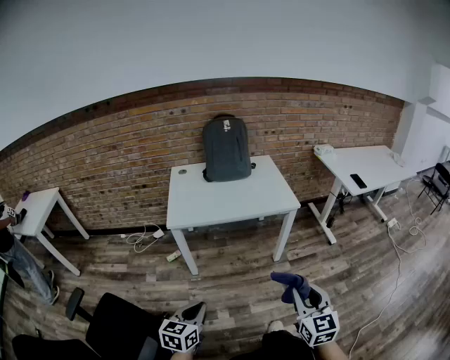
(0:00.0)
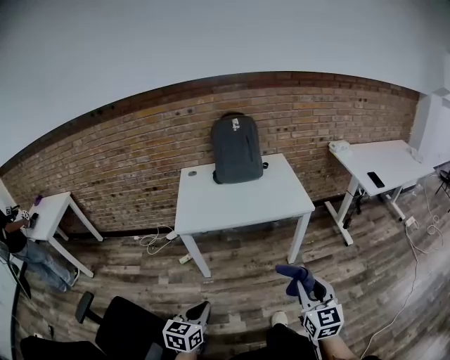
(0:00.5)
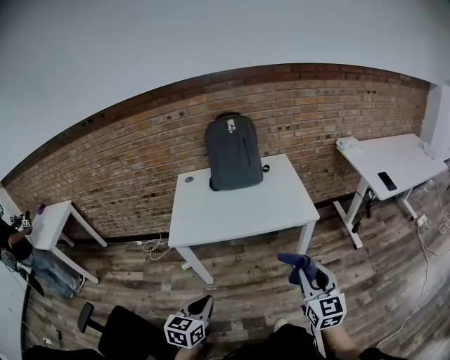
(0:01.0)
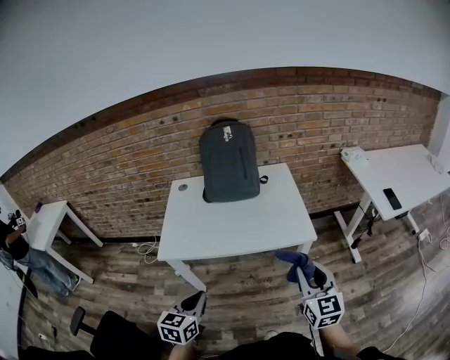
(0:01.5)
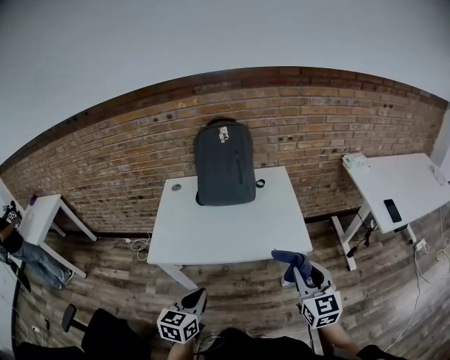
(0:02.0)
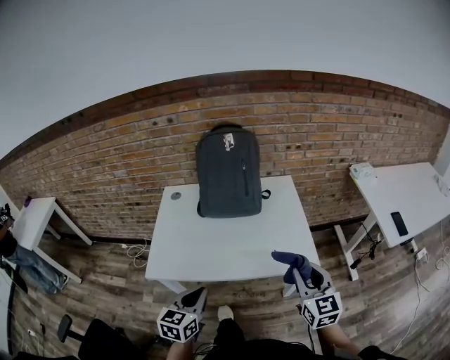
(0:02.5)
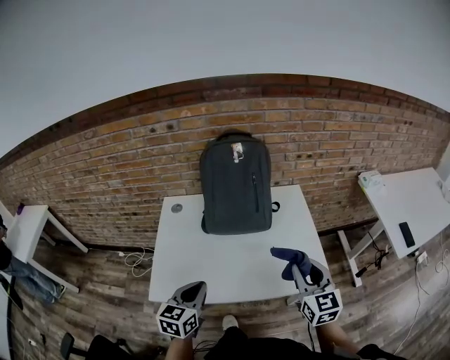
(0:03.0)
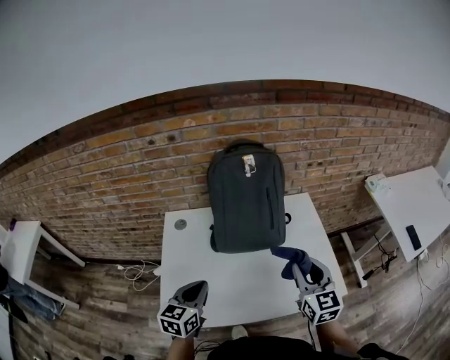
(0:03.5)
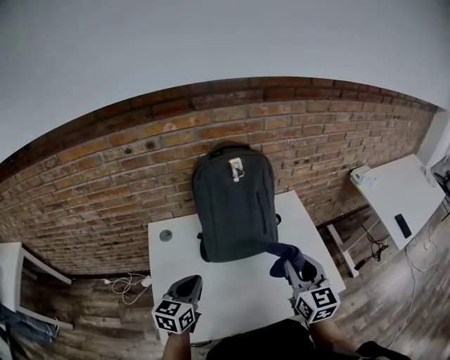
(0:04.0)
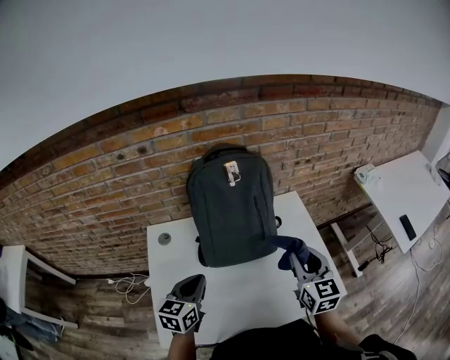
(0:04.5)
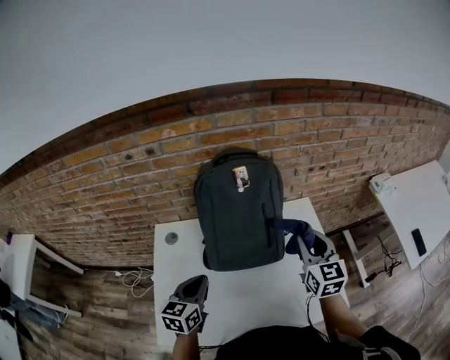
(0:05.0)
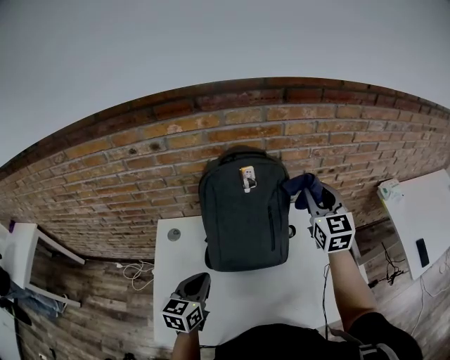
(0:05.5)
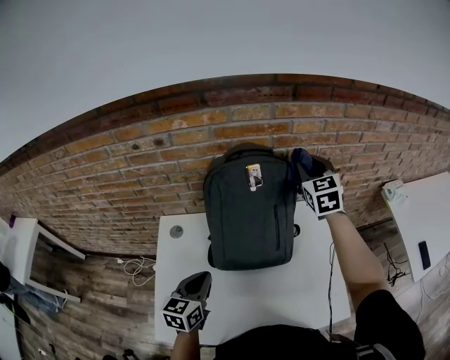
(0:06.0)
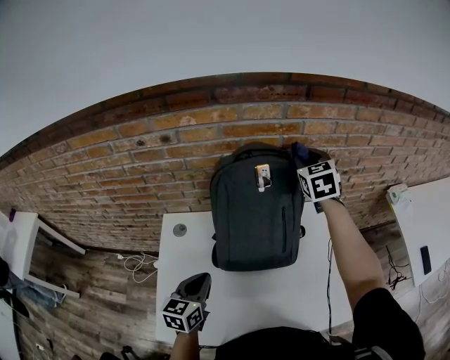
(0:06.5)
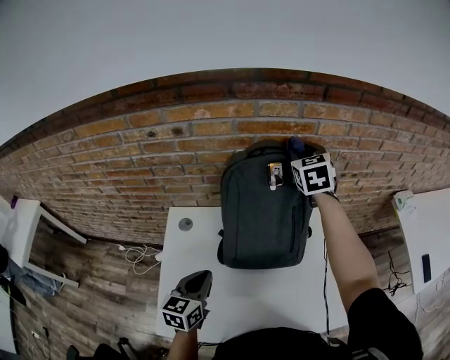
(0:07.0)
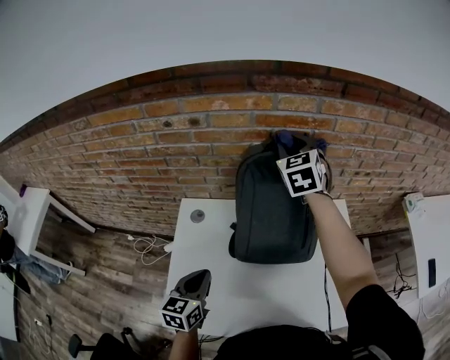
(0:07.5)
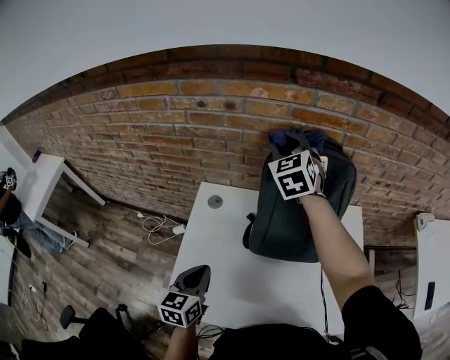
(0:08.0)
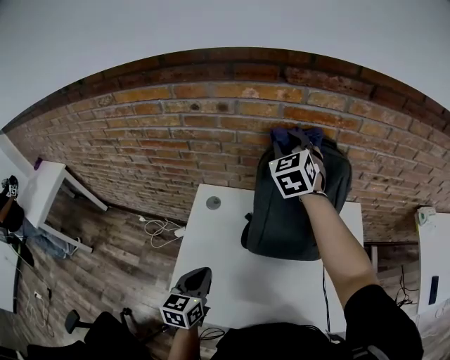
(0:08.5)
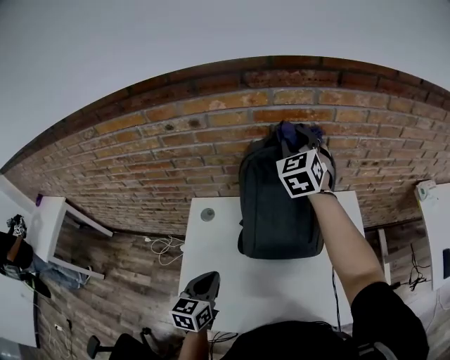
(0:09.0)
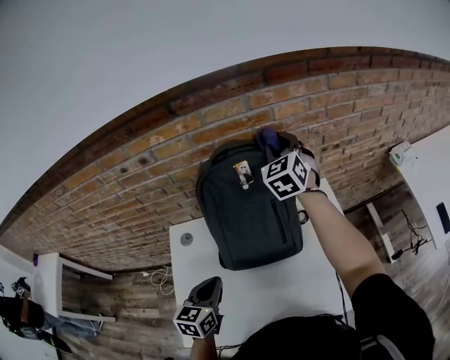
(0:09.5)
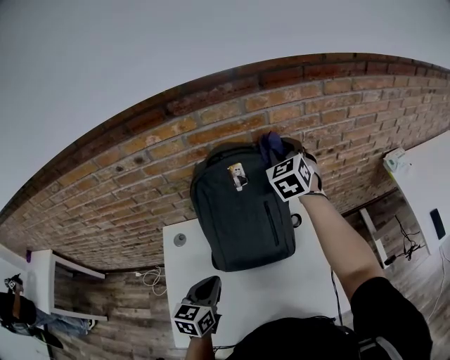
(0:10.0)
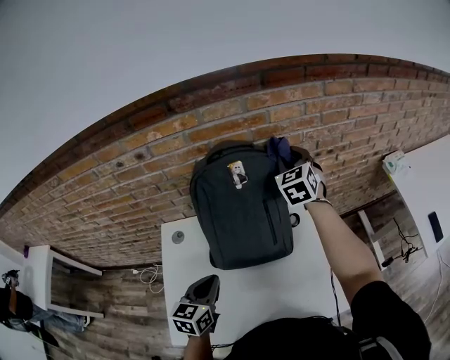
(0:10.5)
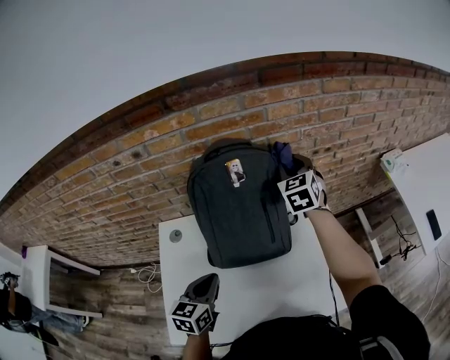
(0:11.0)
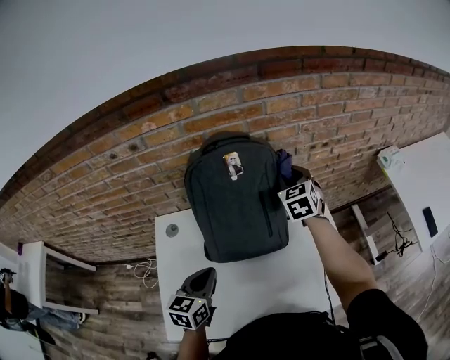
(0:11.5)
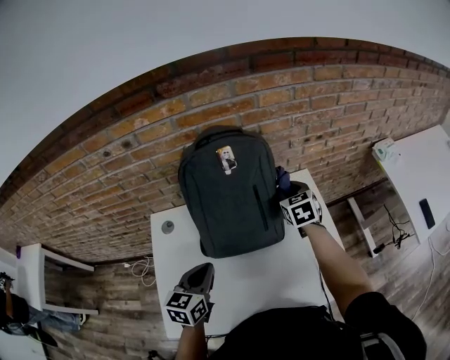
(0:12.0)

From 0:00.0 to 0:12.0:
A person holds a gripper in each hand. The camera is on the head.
From 0:00.0 to 0:02.0: Both grippers move forward, roughly 35 cm.
From 0:02.0 to 0:04.0: The two grippers go about 35 cm forward and to the left.
From 0:04.0 to 0:06.0: The left gripper travels forward by about 5 cm; the right gripper goes some 35 cm forward, and changes its angle by approximately 20 degrees.
From 0:06.0 to 0:08.0: The right gripper is displaced to the left by some 30 cm; the left gripper travels to the left and backward by approximately 10 cm.
From 0:08.0 to 0:10.0: The left gripper is displaced to the right and forward by some 15 cm; the right gripper shifts about 25 cm to the right, and turns by approximately 20 degrees.
From 0:10.0 to 0:12.0: The right gripper travels downward and backward by some 20 cm, and turns by approximately 20 degrees.

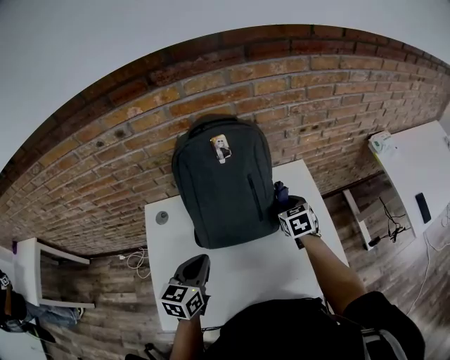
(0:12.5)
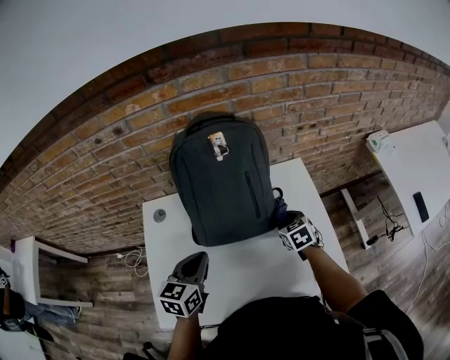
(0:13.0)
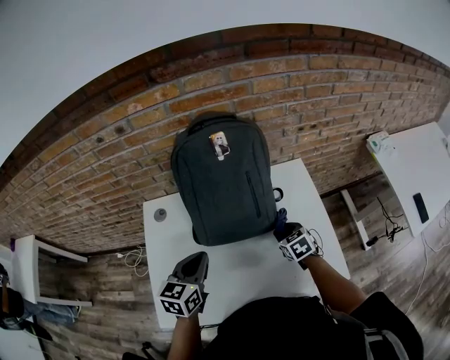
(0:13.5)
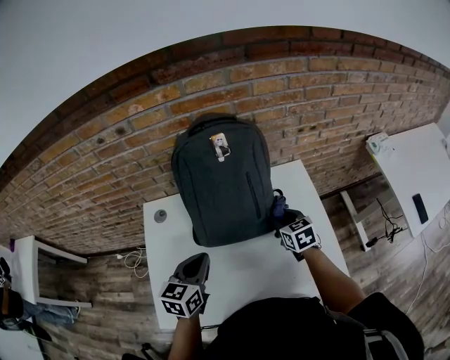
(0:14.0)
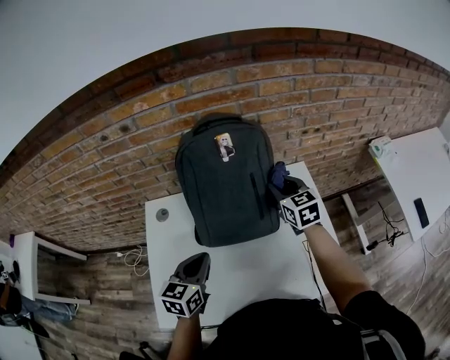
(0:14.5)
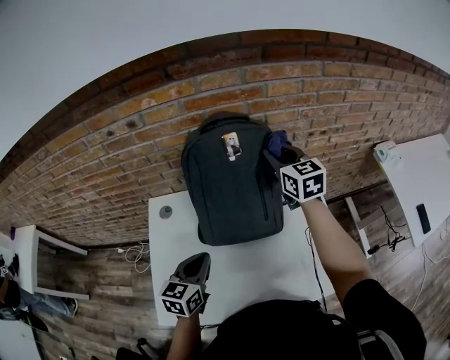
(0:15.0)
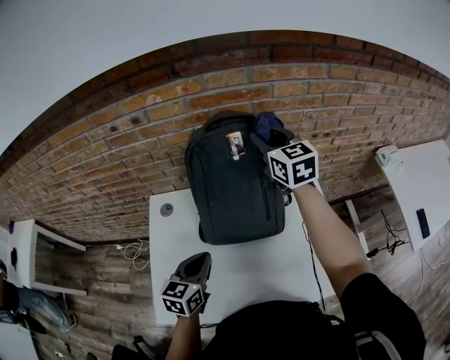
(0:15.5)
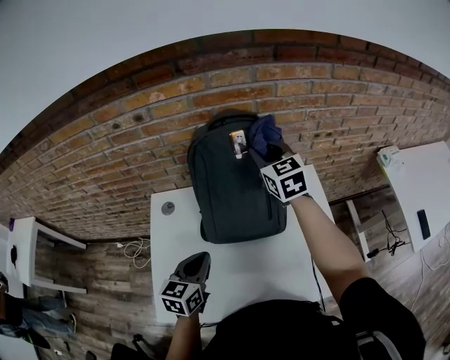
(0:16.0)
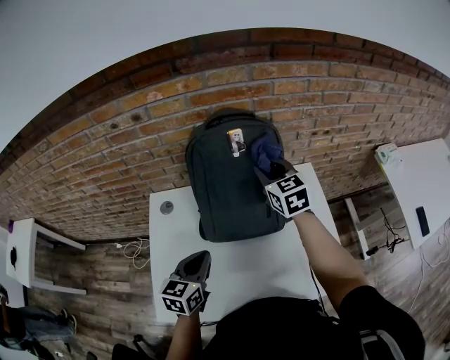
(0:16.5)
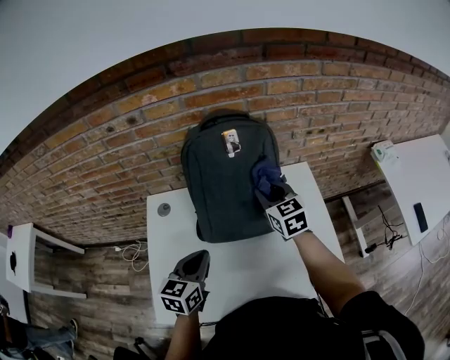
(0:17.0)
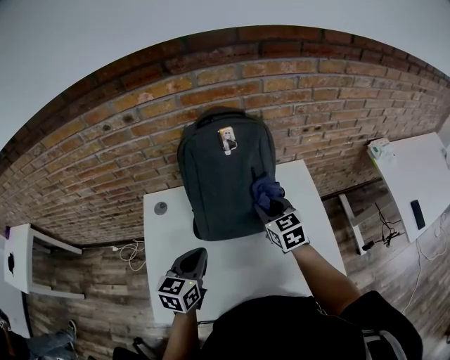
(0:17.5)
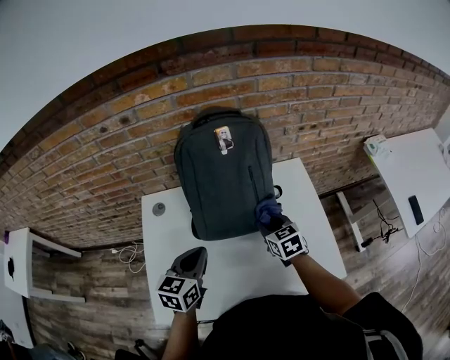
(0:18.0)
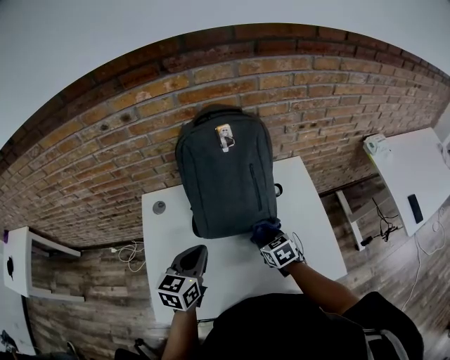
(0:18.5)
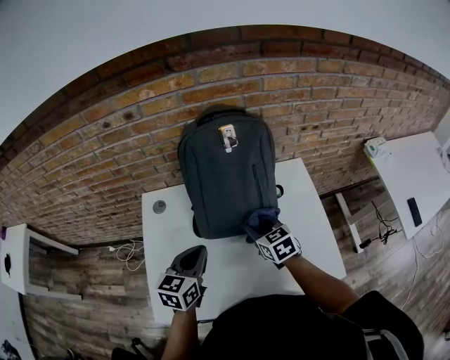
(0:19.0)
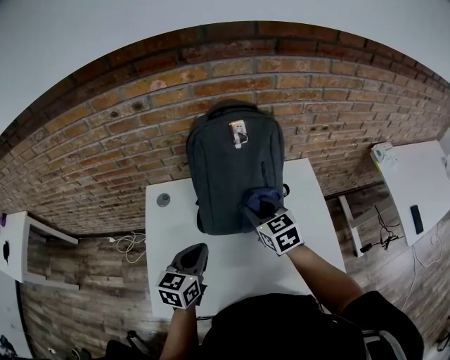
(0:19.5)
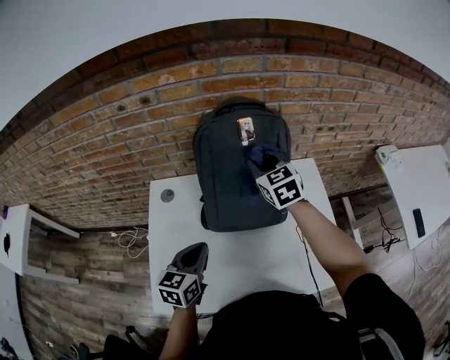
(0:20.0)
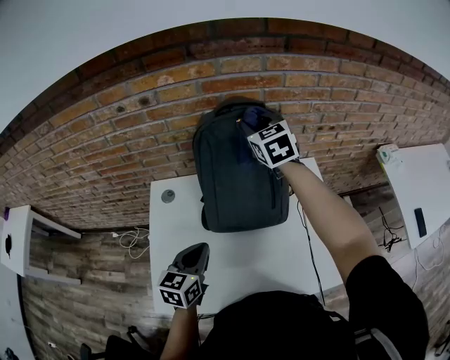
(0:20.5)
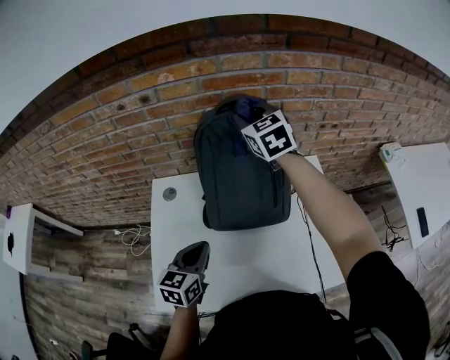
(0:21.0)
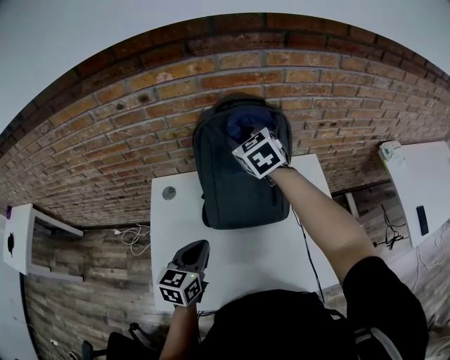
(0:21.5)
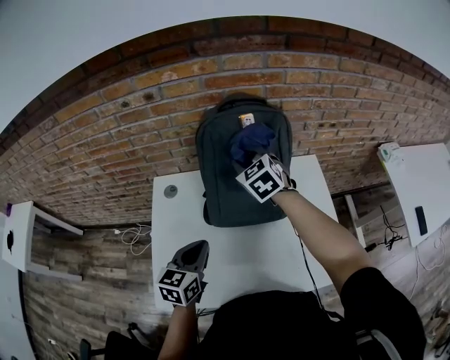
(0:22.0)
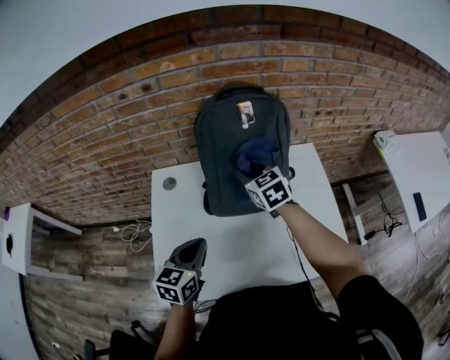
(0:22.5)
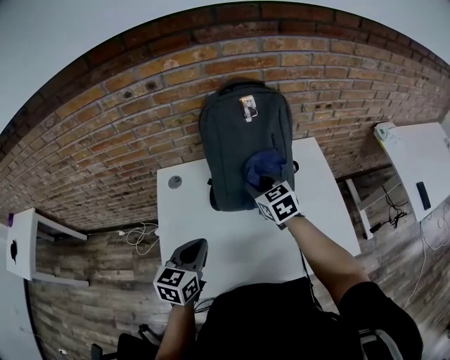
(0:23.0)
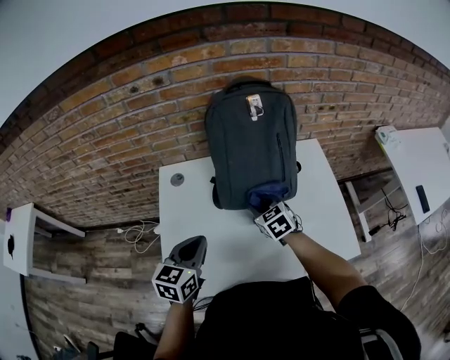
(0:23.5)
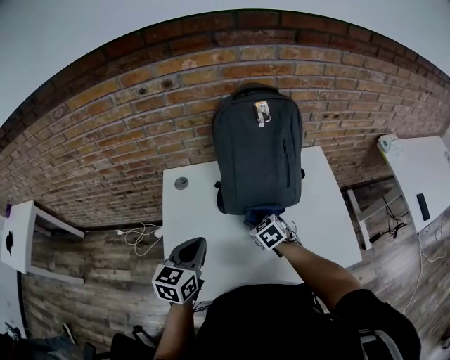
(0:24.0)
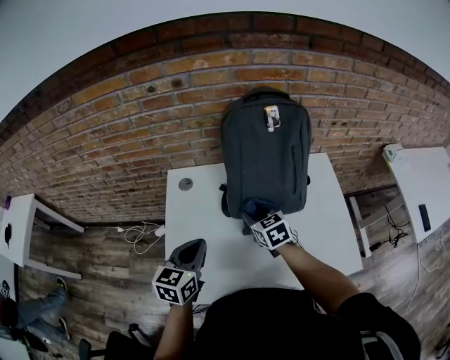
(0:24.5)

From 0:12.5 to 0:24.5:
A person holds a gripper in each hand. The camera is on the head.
From 0:12.5 to 0:14.5: The right gripper is displaced upward by approximately 10 cm.
From 0:14.5 to 0:16.5: The right gripper goes approximately 10 cm to the left and upward.
From 0:16.5 to 0:18.5: The right gripper moves downward and backward, some 30 cm, and swivels roughly 30 degrees.
From 0:18.5 to 0:20.5: The right gripper goes about 40 cm upward and forward, and turns by some 30 degrees.
From 0:20.5 to 0:22.5: The right gripper travels downward and backward by approximately 20 cm.
From 0:22.5 to 0:24.5: The left gripper shifts some 5 cm to the left. Meanwhile the right gripper heads downward, backward and to the left, covering approximately 15 cm.

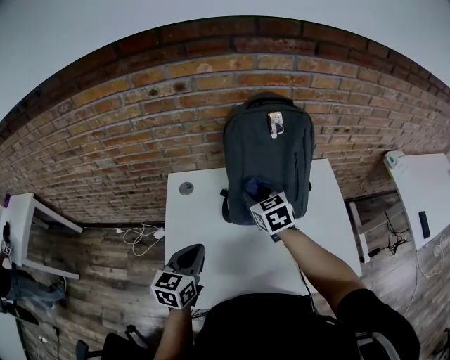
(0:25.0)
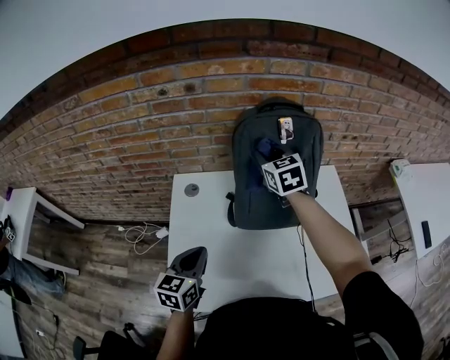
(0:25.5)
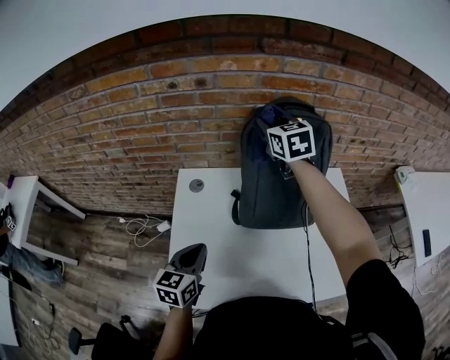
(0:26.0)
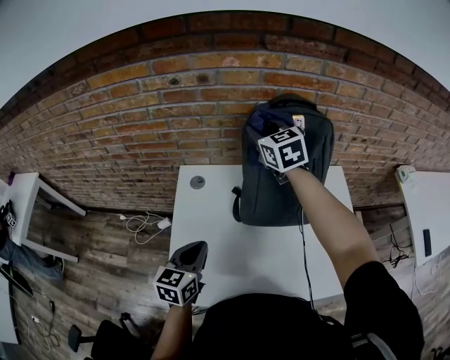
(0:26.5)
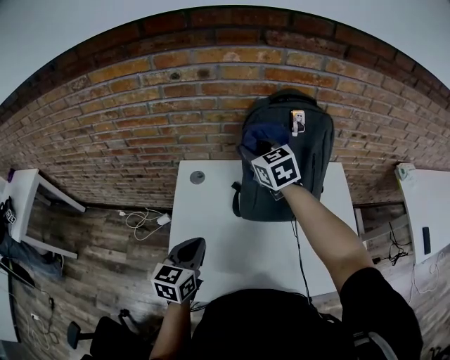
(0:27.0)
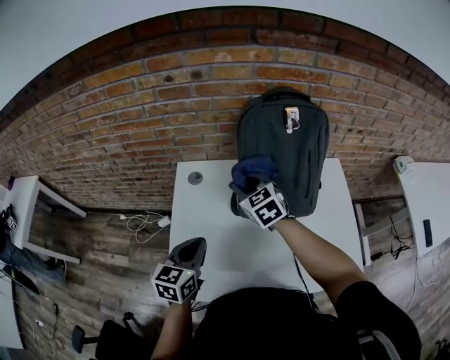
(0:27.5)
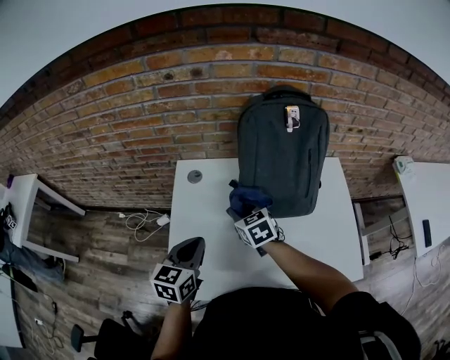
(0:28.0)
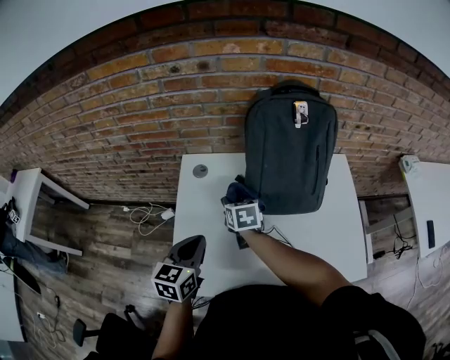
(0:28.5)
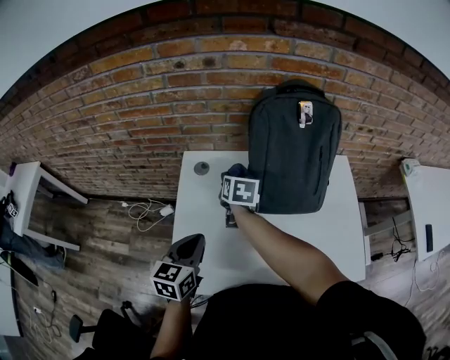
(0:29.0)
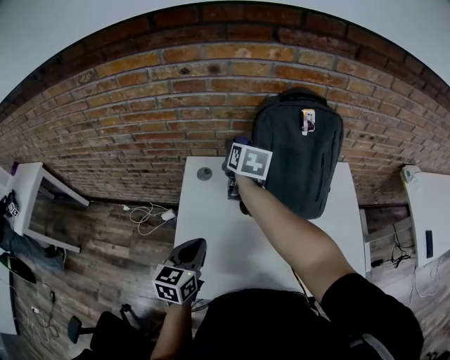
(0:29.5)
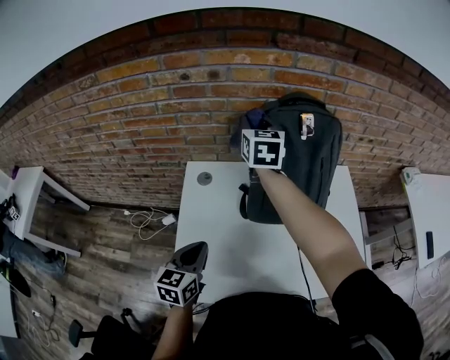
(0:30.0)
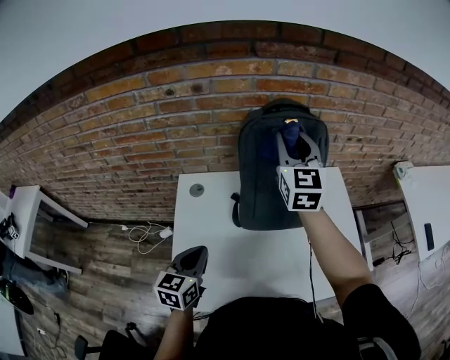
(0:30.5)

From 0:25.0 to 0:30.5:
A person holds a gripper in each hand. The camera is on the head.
From 0:25.0 to 0:27.0: The right gripper heads forward, upward and to the left, covering roughly 15 cm.
From 0:27.0 to 0:28.5: The right gripper heads downward and backward, covering about 20 cm, and rotates about 30 degrees.
From 0:28.5 to 0:30.5: The right gripper is displaced upward and to the right by roughly 35 cm, and points its fingers about 40 degrees further upward.
